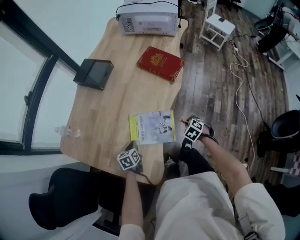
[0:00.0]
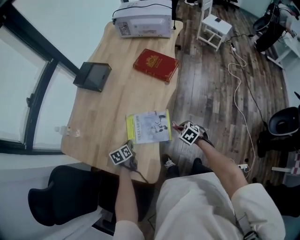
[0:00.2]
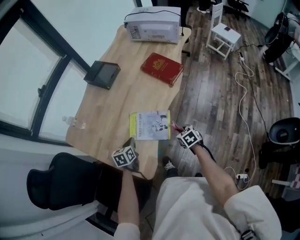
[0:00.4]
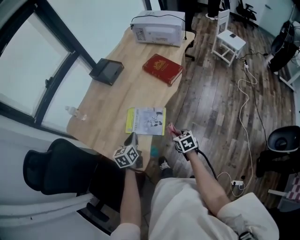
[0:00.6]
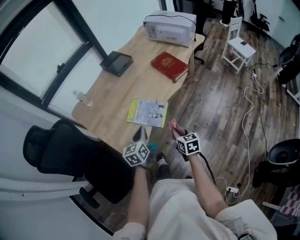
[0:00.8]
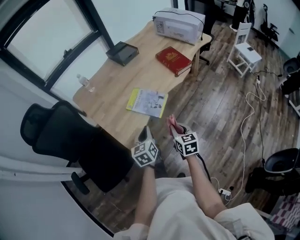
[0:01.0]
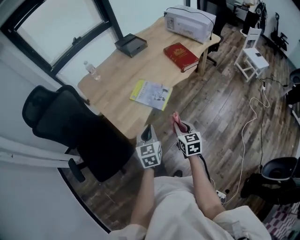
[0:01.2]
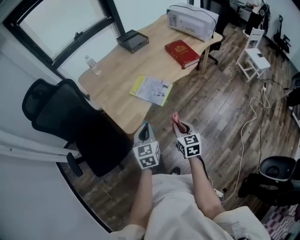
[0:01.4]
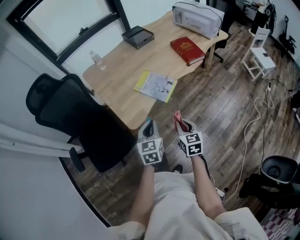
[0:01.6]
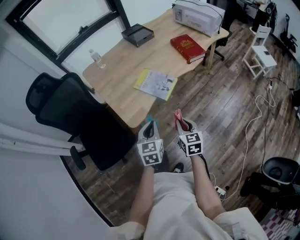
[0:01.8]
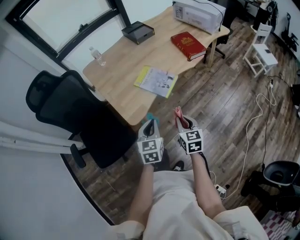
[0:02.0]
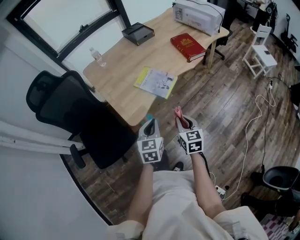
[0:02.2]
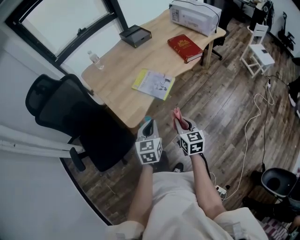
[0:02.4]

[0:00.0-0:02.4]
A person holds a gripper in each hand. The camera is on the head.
0:00.0 to 0:01.2: The right gripper changes place by approximately 30 cm, and tips its fingers upward by roughly 40 degrees, while the left gripper changes place by some 40 cm, and turns by roughly 40 degrees.
0:01.2 to 0:02.4: There are only small adjustments of the grippers.

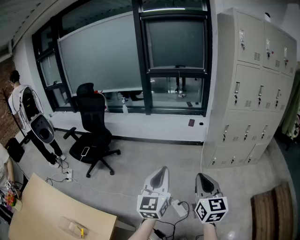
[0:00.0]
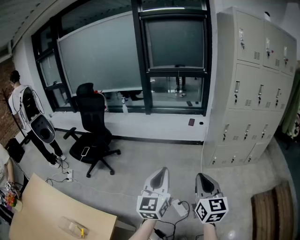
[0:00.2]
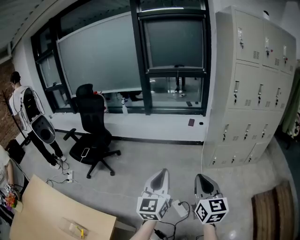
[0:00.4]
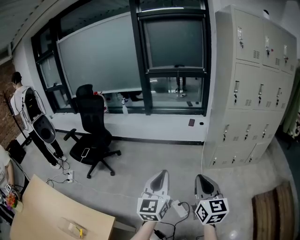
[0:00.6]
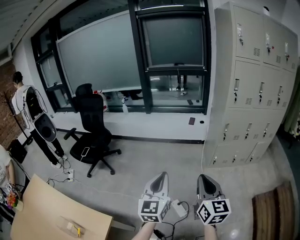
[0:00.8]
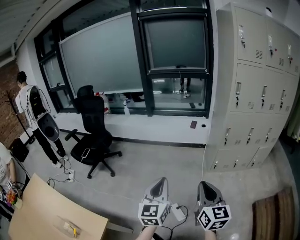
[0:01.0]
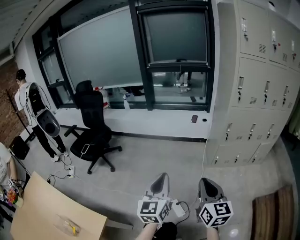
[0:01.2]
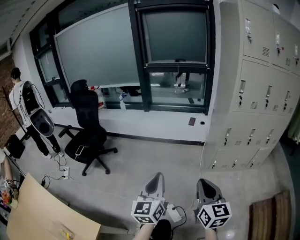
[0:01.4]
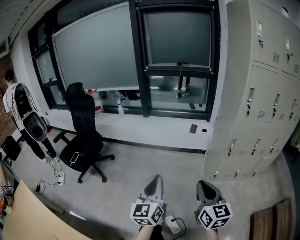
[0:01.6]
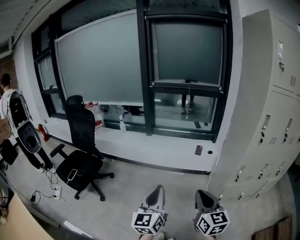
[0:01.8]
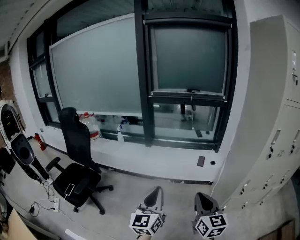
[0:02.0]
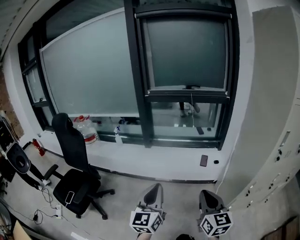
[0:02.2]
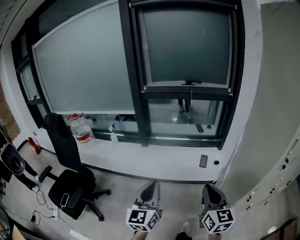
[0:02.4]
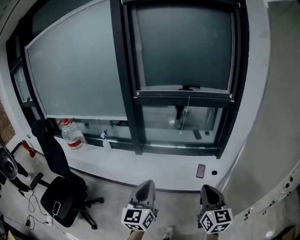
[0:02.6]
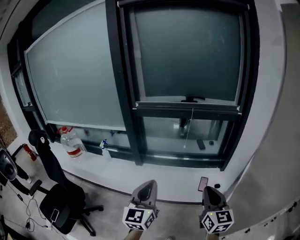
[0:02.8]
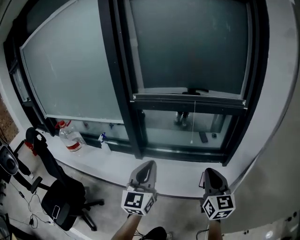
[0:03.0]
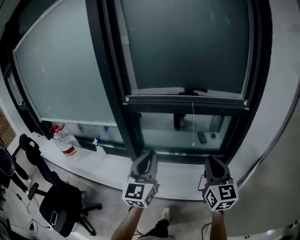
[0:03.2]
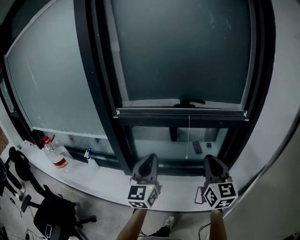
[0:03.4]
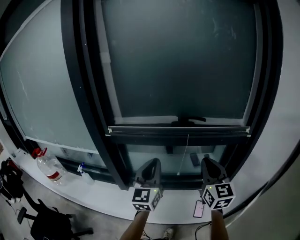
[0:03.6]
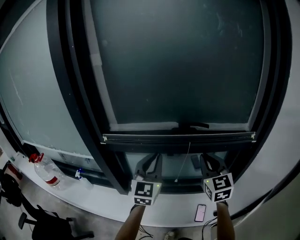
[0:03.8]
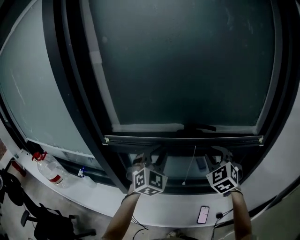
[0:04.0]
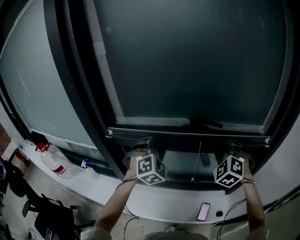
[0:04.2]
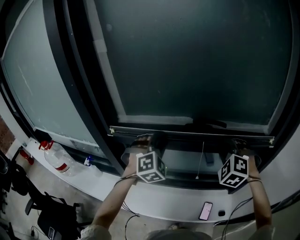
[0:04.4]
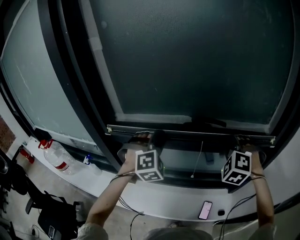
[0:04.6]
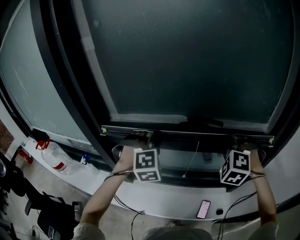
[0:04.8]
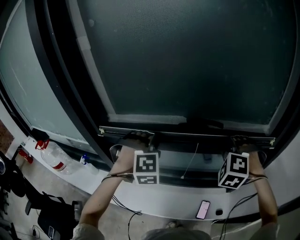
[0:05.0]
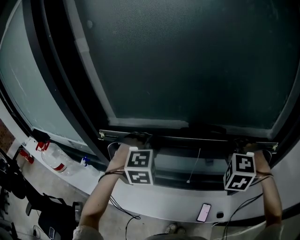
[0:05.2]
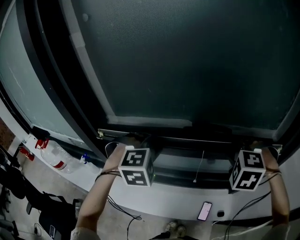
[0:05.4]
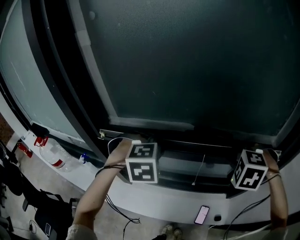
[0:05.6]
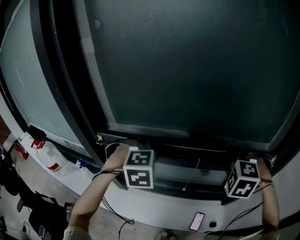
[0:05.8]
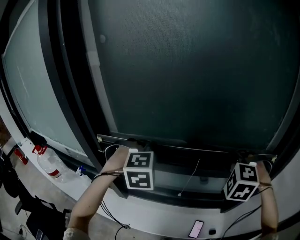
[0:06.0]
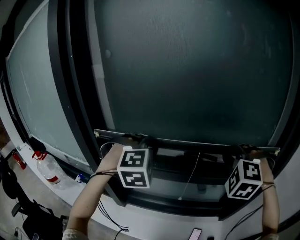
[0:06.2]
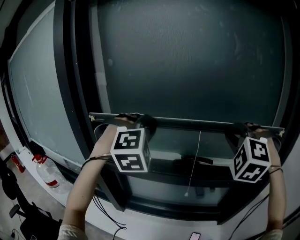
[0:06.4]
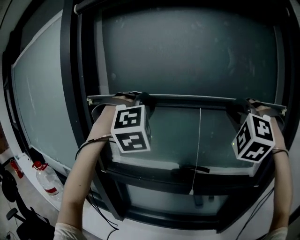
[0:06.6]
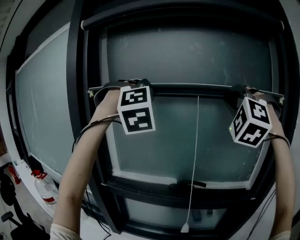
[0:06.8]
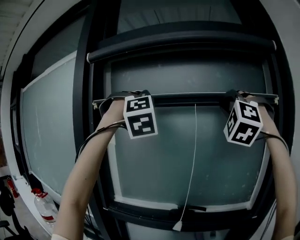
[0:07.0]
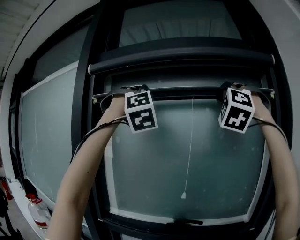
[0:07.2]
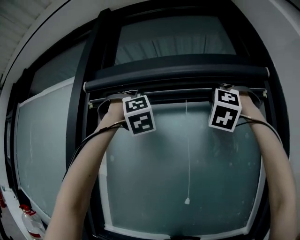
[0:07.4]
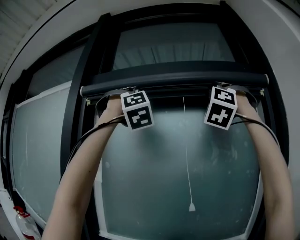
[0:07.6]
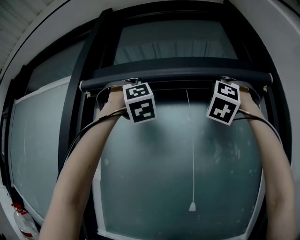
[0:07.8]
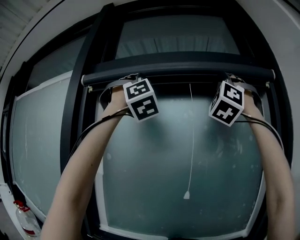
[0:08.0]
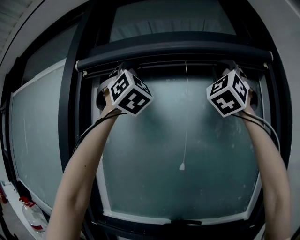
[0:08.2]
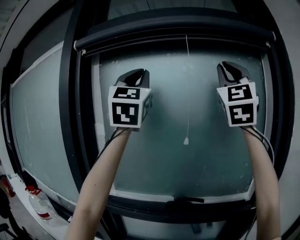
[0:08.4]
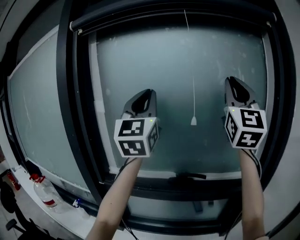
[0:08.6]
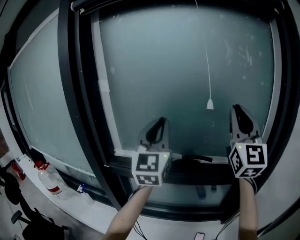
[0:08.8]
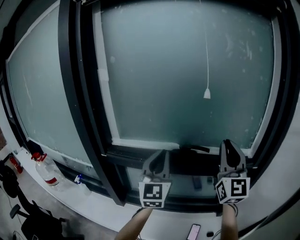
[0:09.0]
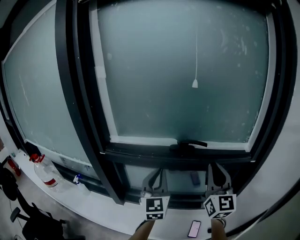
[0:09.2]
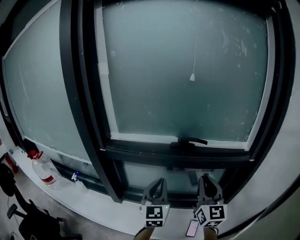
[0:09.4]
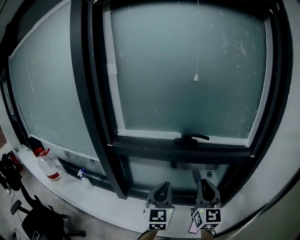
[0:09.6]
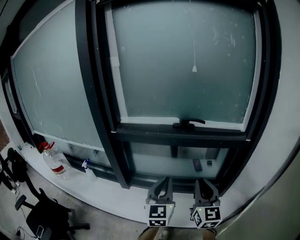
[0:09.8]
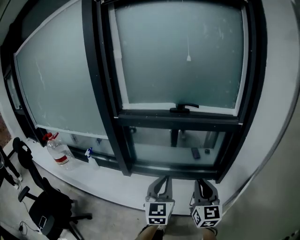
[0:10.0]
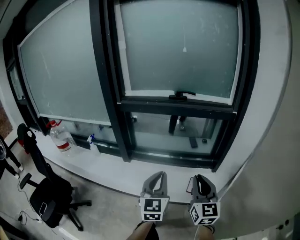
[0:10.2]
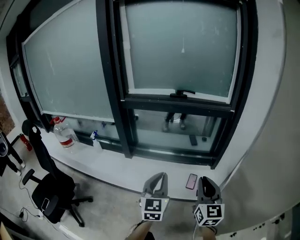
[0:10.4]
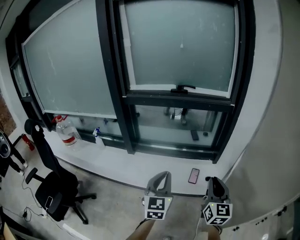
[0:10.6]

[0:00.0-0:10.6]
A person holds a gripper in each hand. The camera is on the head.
0:00.0 to 0:01.6: The two grippers go roughly 20 cm forward.
0:01.6 to 0:03.0: Both grippers are carried forward, roughly 70 cm.
0:03.0 to 0:04.6: The pair of grippers is taken forward, approximately 50 cm. The right gripper rolls counterclockwise, seen from behind, by some 70 degrees. Meanwhile the left gripper rolls clockwise, seen from behind, by about 70 degrees.
0:06.0 to 0:07.6: Both grippers move upward, roughly 70 cm. The right gripper tilts its fingers approximately 70 degrees upward. Meanwhile the left gripper angles its fingers upward, by about 70 degrees.
0:07.6 to 0:09.0: Both grippers travel together downward, approximately 50 cm. The right gripper rolls clockwise, seen from behind, by about 80 degrees. Meanwhile the left gripper rotates around the line of its fingers by some 80 degrees, counterclockwise from behind.
0:09.0 to 0:10.6: Both grippers are carried backward, some 50 cm. Both grippers move downward, roughly 25 cm. The left gripper swivels about 20 degrees, while the right gripper swivels roughly 30 degrees.

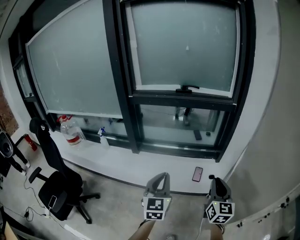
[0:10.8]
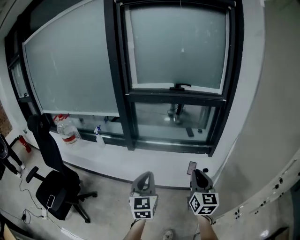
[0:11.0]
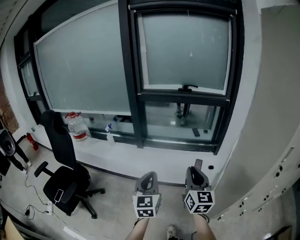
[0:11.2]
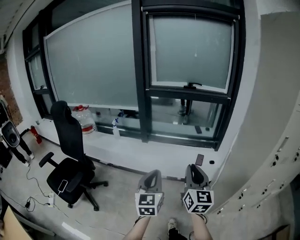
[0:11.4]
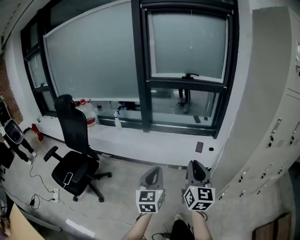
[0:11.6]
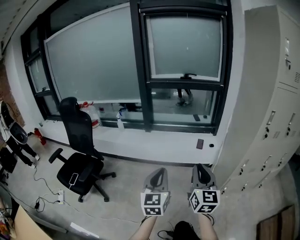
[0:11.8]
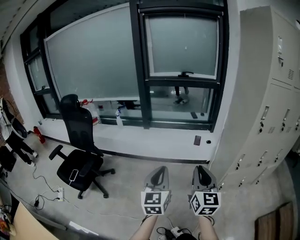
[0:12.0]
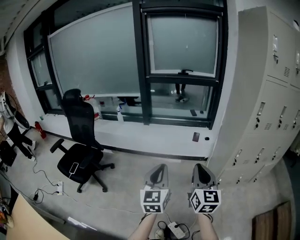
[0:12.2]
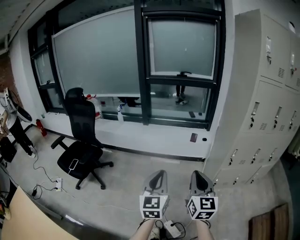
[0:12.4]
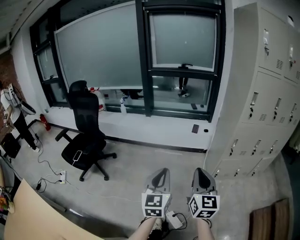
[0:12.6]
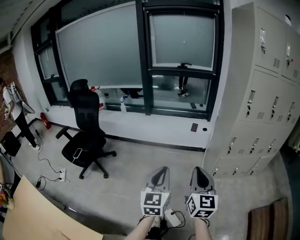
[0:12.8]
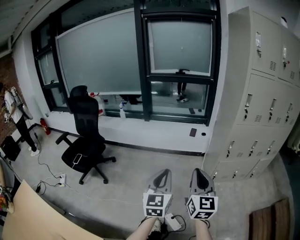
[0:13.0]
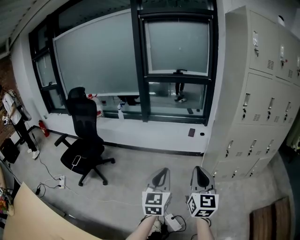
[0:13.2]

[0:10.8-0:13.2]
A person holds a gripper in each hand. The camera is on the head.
0:10.8 to 0:12.0: Both grippers are carried backward, about 50 cm.
0:12.0 to 0:13.2: The left gripper shifts some 20 cm backward and to the right, while the right gripper heads backward, covering roughly 20 cm.

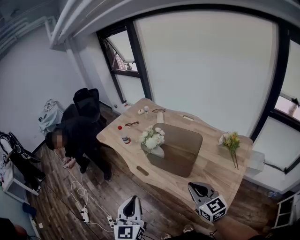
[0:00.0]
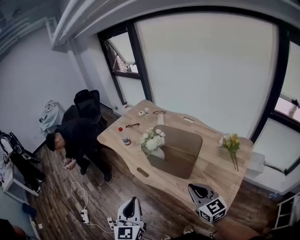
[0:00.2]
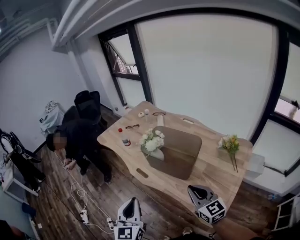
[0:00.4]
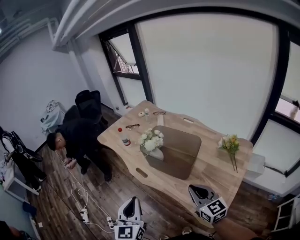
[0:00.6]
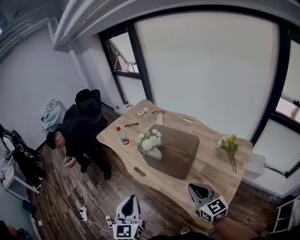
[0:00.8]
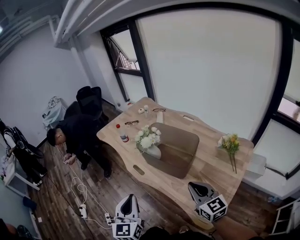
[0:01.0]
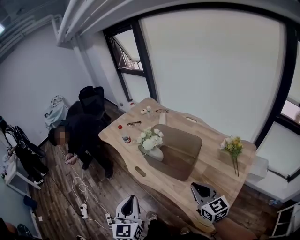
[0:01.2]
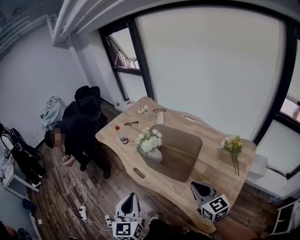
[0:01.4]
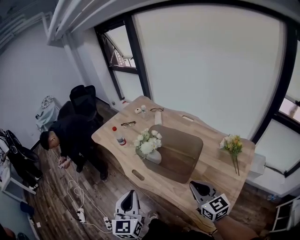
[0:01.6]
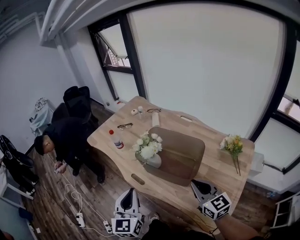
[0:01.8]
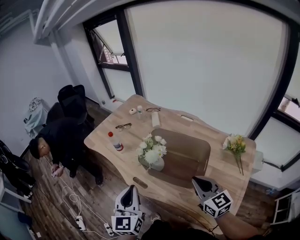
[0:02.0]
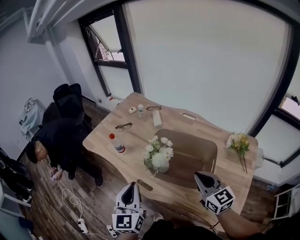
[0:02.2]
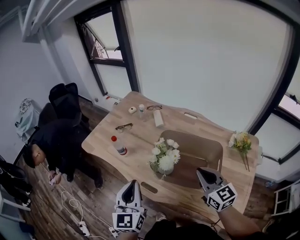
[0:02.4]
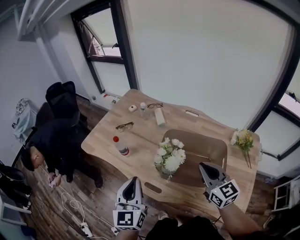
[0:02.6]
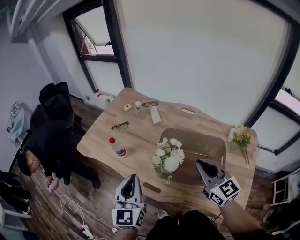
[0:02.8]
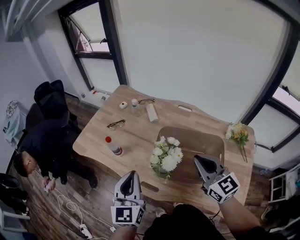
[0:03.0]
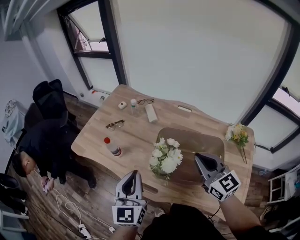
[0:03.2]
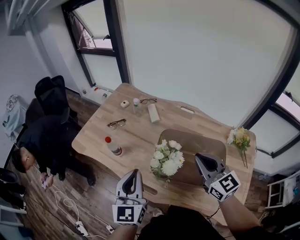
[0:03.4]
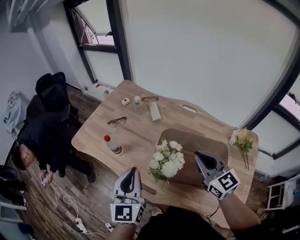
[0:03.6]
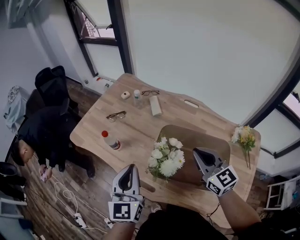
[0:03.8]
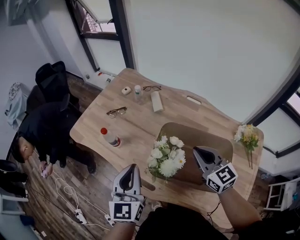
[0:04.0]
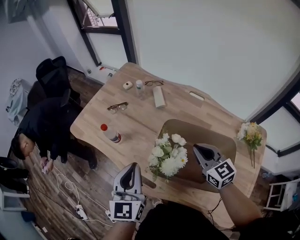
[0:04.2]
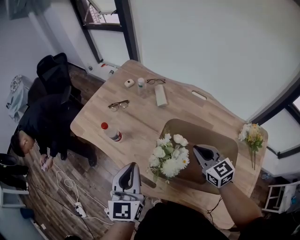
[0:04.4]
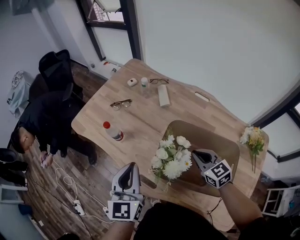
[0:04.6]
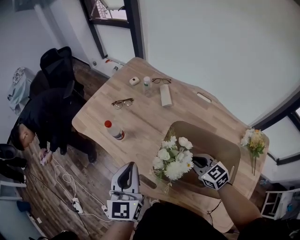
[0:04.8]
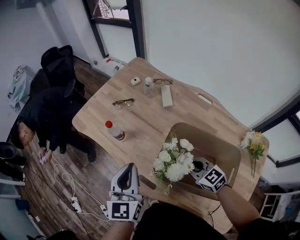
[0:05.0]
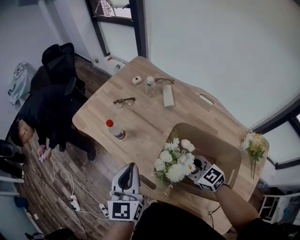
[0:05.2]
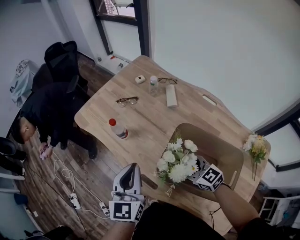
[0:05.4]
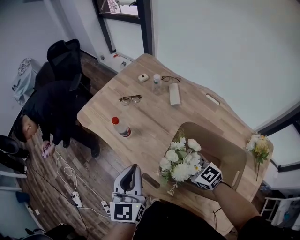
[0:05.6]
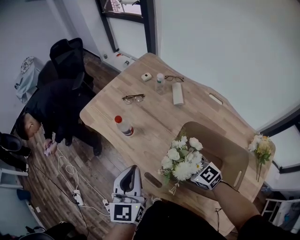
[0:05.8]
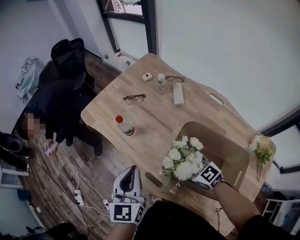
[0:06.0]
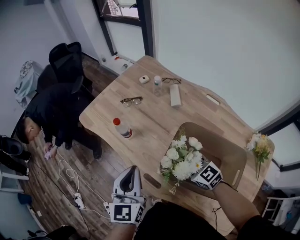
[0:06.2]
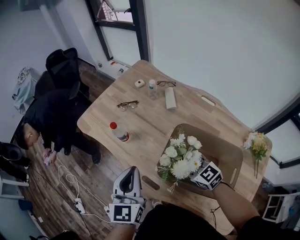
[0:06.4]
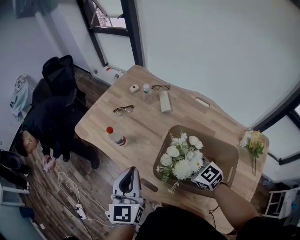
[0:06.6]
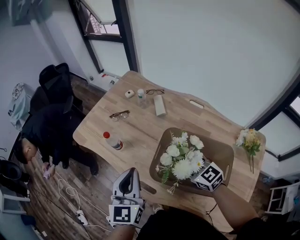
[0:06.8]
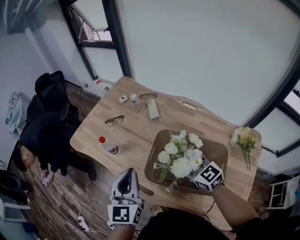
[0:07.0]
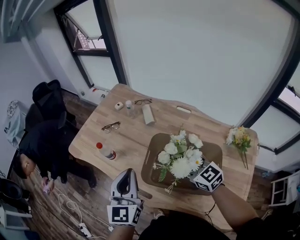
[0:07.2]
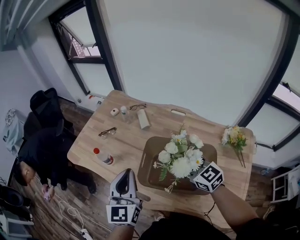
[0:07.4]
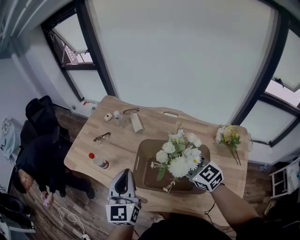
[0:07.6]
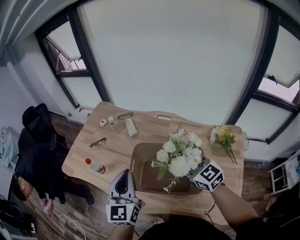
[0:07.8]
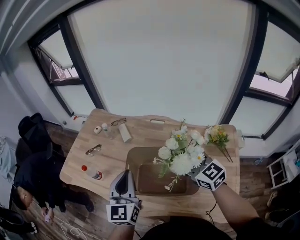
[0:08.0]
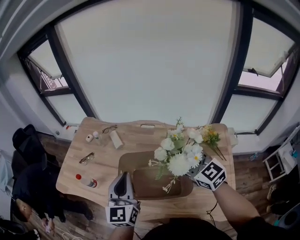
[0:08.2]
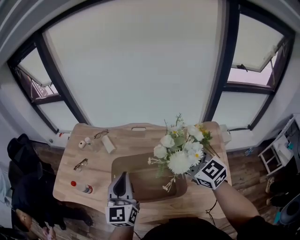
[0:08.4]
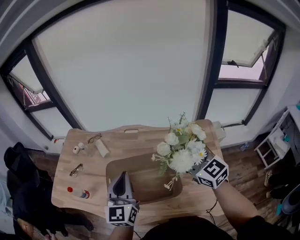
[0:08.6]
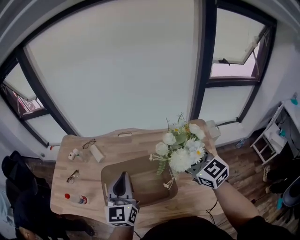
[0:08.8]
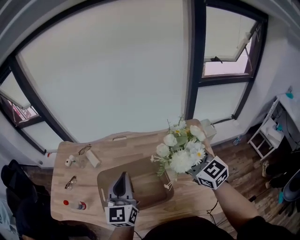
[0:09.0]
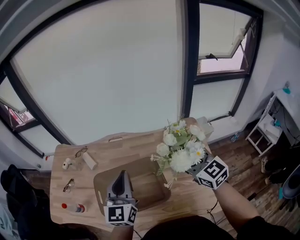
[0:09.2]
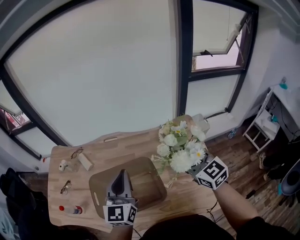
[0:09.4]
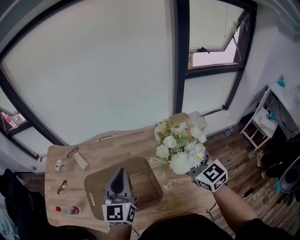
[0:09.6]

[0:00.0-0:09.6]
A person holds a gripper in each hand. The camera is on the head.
0:00.0 to 0:01.6: The right gripper changes place by some 5 cm, while the left gripper heads forward, covering approximately 5 cm.
0:01.6 to 0:03.2: The left gripper shifts about 25 cm forward. Meanwhile the right gripper shifts some 25 cm forward and to the left.
0:03.2 to 0:04.8: The right gripper travels downward by approximately 20 cm, and turns by about 30 degrees. Meanwhile the left gripper heads downward, covering about 5 cm.
0:04.8 to 0:06.4: The right gripper heads to the left, covering about 5 cm, and opens.
0:06.4 to 0:08.0: The left gripper moves some 15 cm, and swivels roughly 20 degrees; the right gripper shifts by about 25 cm, and turns by roughly 30 degrees.
0:08.0 to 0:09.6: The left gripper changes place by about 20 cm, and rotates some 30 degrees, while the right gripper shifts by some 25 cm, and changes its angle by about 30 degrees.
